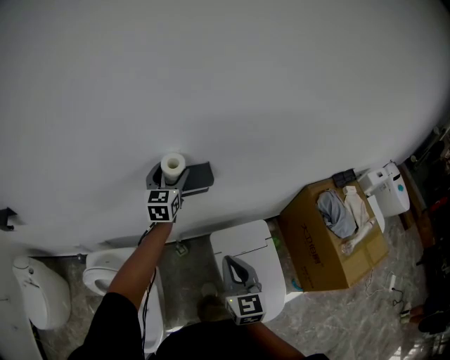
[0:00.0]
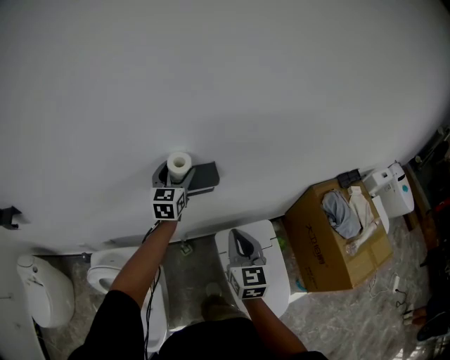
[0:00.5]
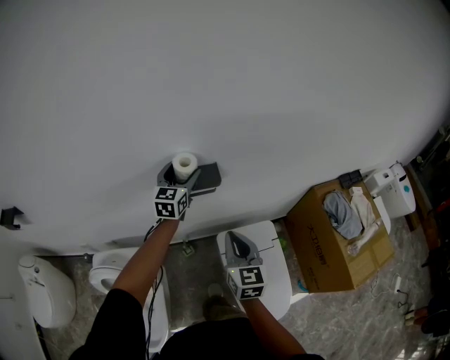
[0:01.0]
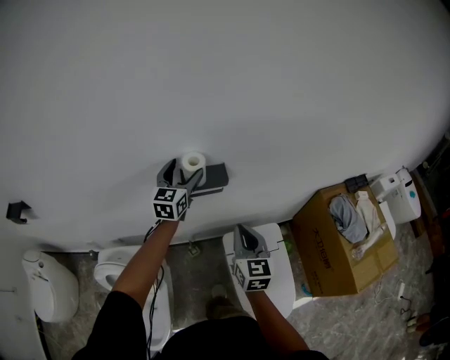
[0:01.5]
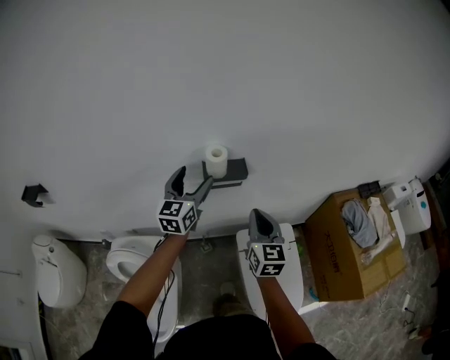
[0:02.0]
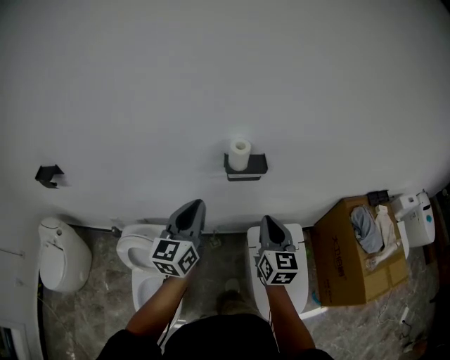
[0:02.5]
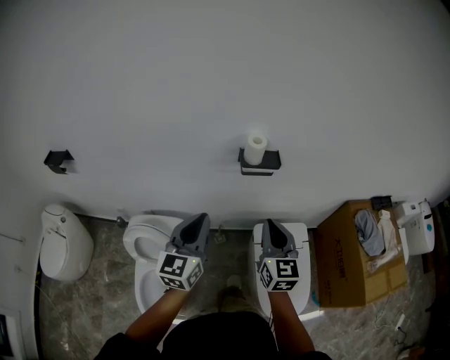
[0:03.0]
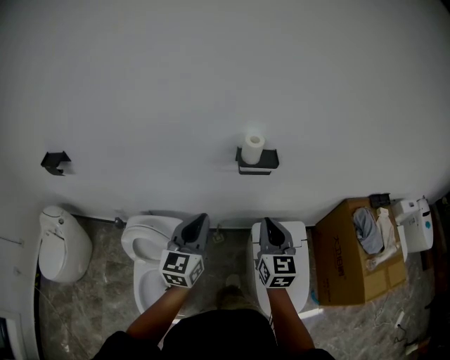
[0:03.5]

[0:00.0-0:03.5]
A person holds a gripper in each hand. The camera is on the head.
0:00.0 to 0:02.0: The right gripper travels forward by approximately 10 cm. The left gripper goes about 15 cm backward and upward.
0:02.0 to 0:03.5: The left gripper heads backward, covering roughly 25 cm, and closes its fingers, while the right gripper shifts some 15 cm backward and to the left.

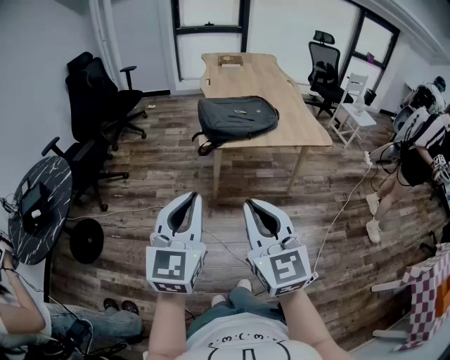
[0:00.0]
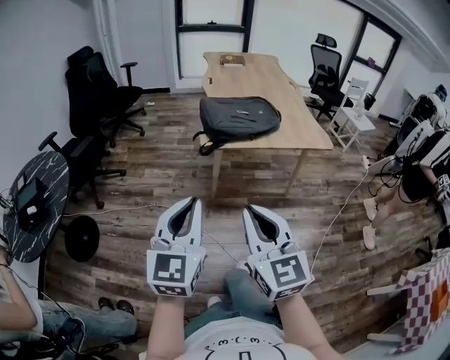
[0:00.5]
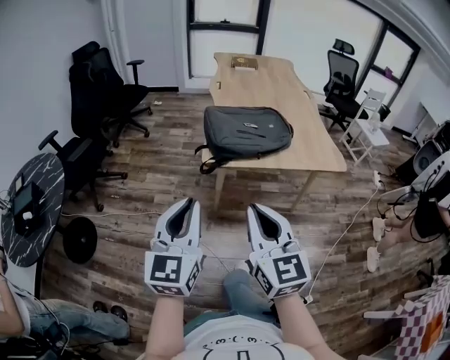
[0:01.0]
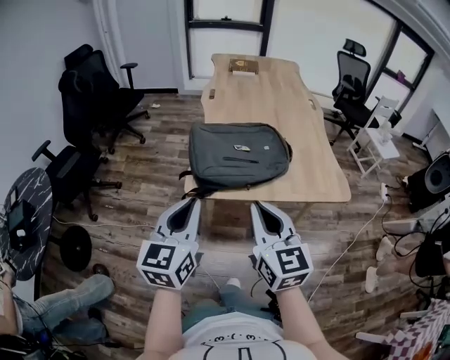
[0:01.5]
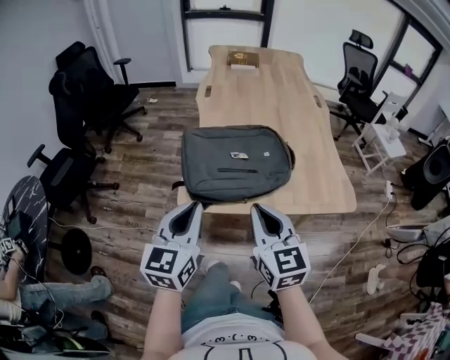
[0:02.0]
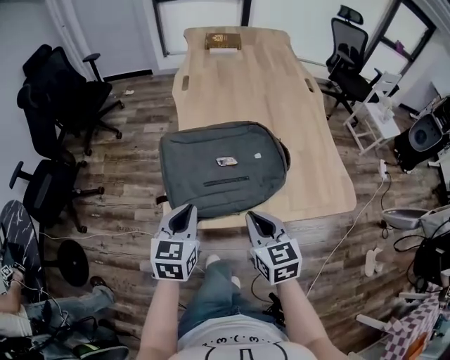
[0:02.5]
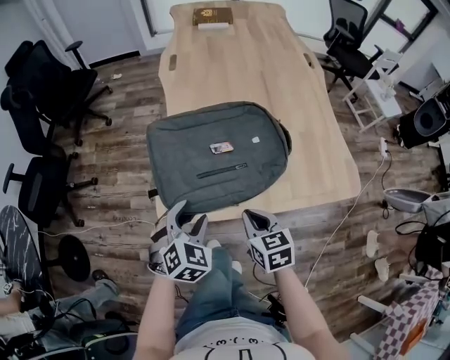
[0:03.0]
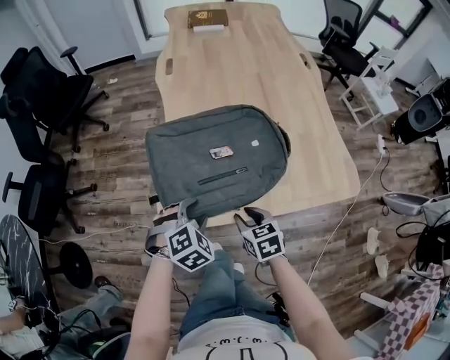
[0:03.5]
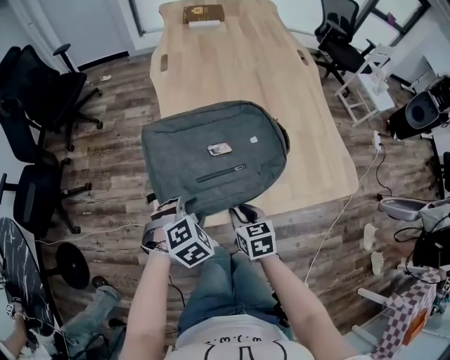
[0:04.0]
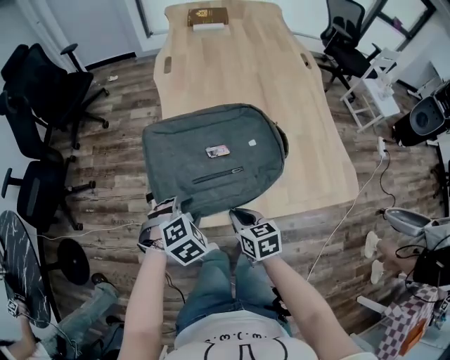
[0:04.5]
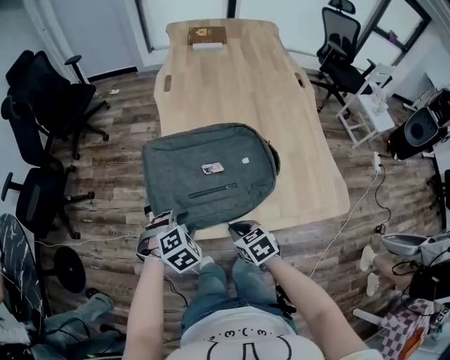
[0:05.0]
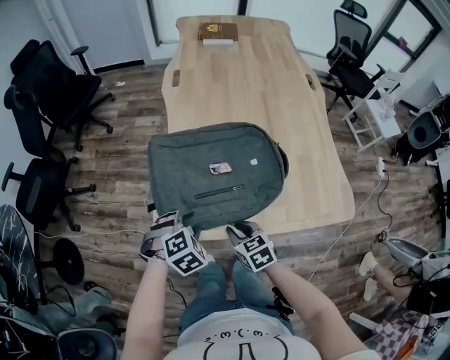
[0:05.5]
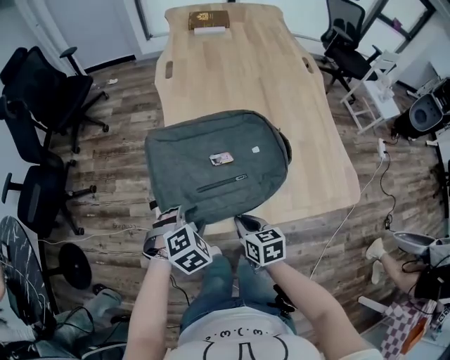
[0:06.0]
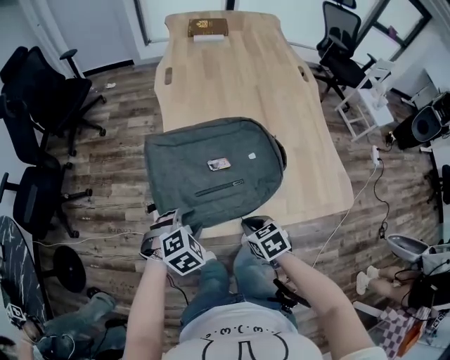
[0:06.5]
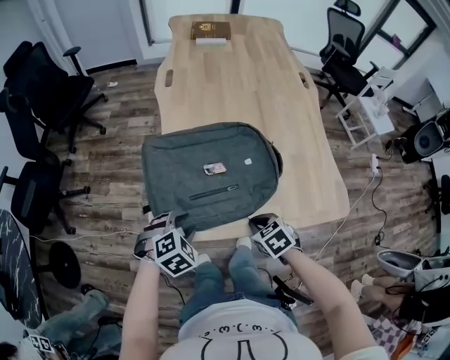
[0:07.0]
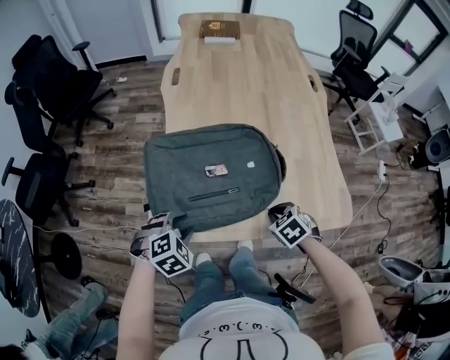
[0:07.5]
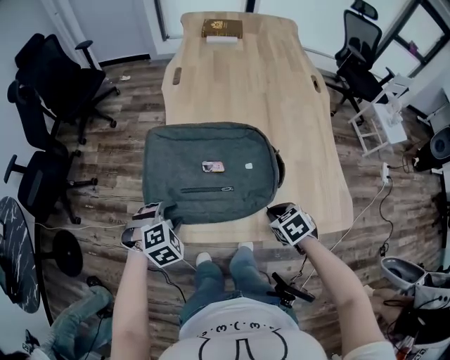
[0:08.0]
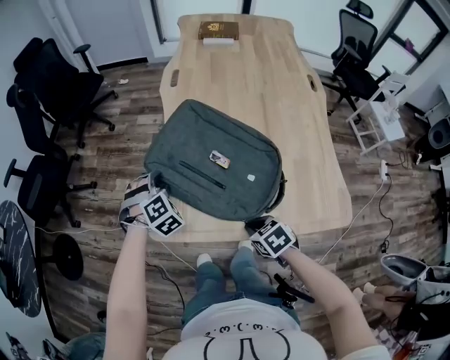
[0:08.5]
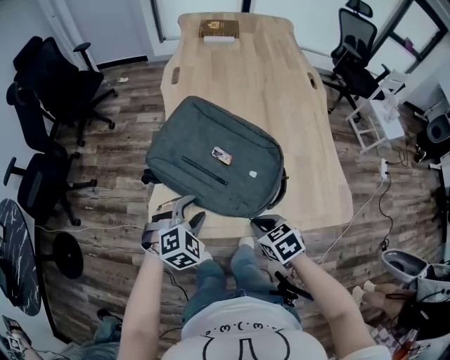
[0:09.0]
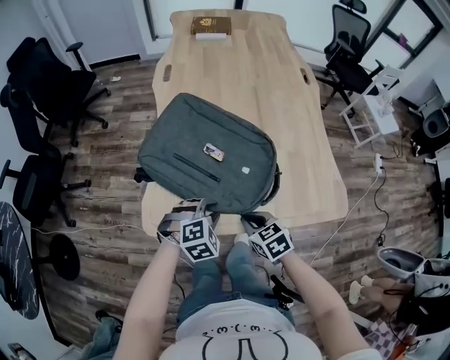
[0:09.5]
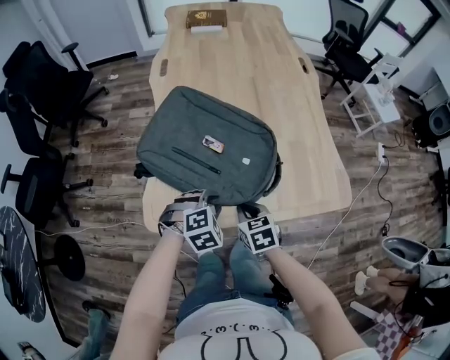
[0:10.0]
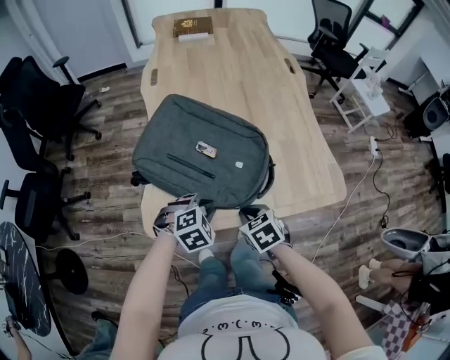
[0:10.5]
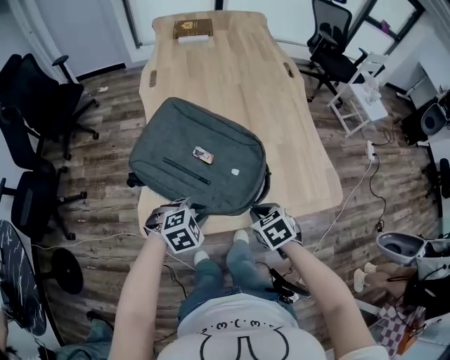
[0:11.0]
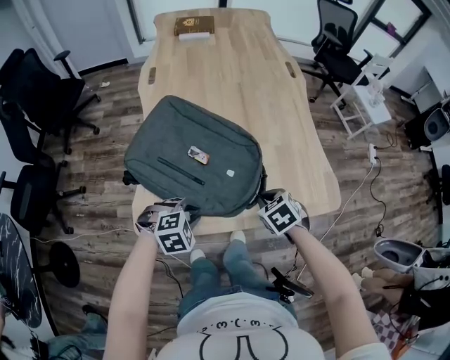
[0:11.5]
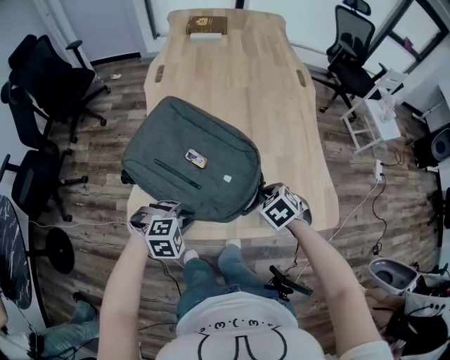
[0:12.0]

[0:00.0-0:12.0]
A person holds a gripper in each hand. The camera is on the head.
0:00.0 to 0:02.0: The grippers both shift forward by some 40 cm.
0:02.0 to 0:04.0: The left gripper travels downward and forward by some 25 cm, points its fingers roughly 50 degrees further downward, and opens, while the right gripper heads downward, covering roughly 25 cm, and angles its fingers downward, by some 30 degrees.
0:06.0 to 0:08.0: The right gripper travels to the right by roughly 15 cm, and swivels about 40 degrees.
0:08.0 to 0:10.0: The left gripper shifts by some 15 cm. Meanwhile the right gripper ends up approximately 10 cm from where it was, and changes its angle by roughly 20 degrees.
0:10.0 to 0:12.0: The right gripper heads forward and to the right, covering roughly 15 cm, and turns by about 30 degrees.

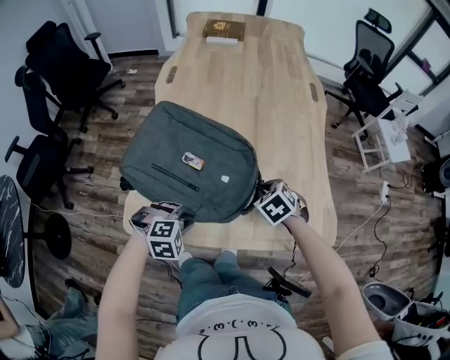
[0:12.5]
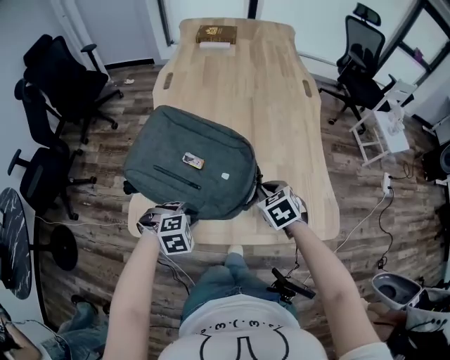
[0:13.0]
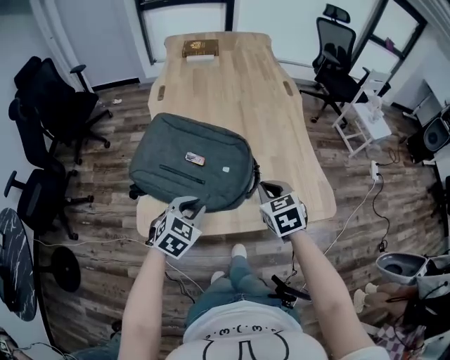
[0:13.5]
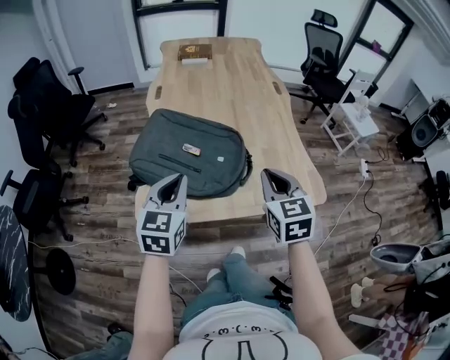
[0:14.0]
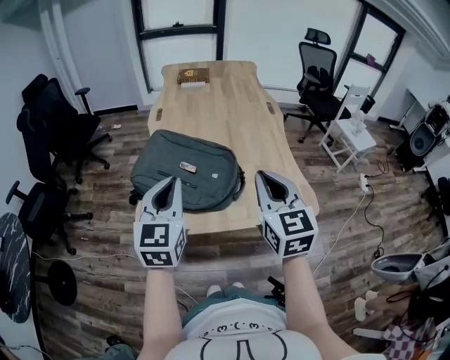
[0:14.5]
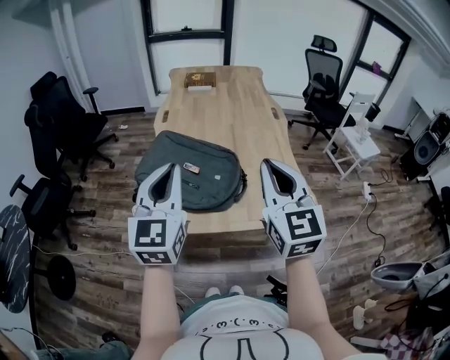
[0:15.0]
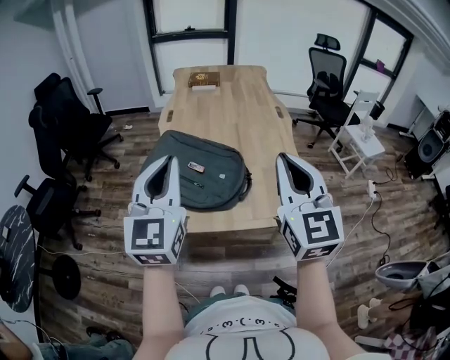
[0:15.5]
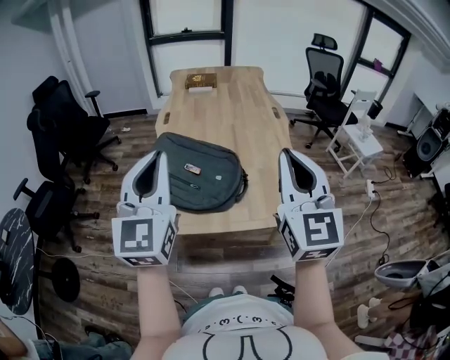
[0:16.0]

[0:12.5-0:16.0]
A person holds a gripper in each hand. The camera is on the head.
0:12.5 to 0:14.5: The right gripper shifts about 35 cm upward and backward, and tilts its fingers about 60 degrees upward, while the left gripper heads upward, covering approximately 30 cm, and points its fingers about 60 degrees further upward.
0:14.5 to 0:16.0: Both grippers travel together upward, some 10 cm.

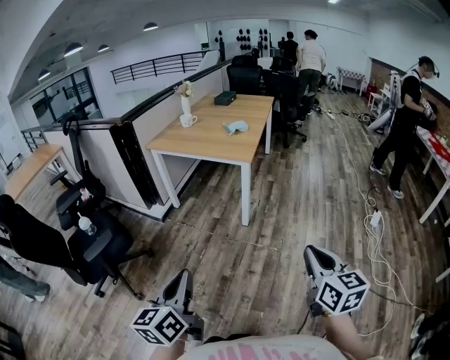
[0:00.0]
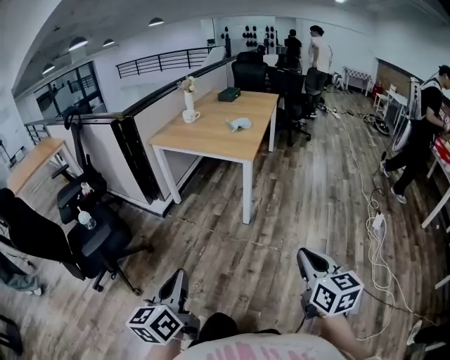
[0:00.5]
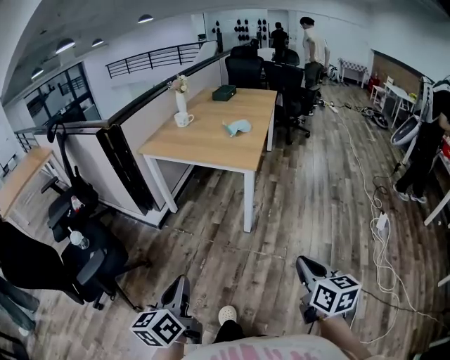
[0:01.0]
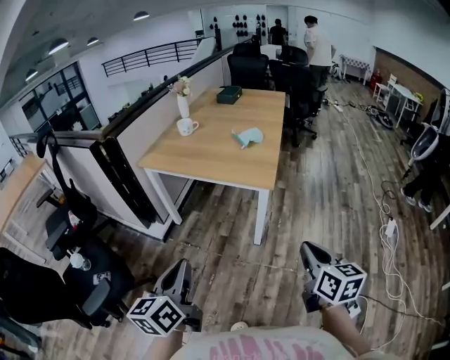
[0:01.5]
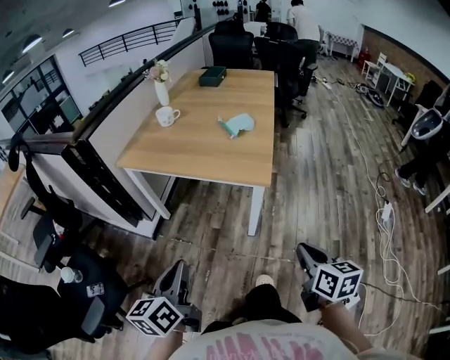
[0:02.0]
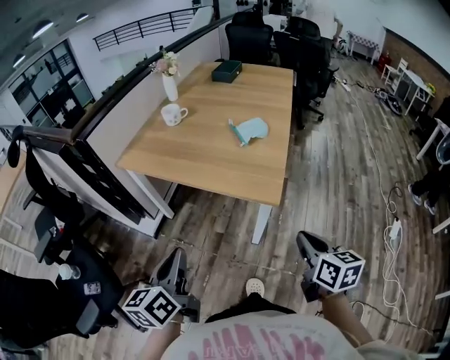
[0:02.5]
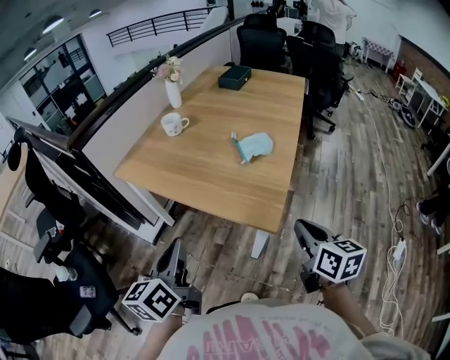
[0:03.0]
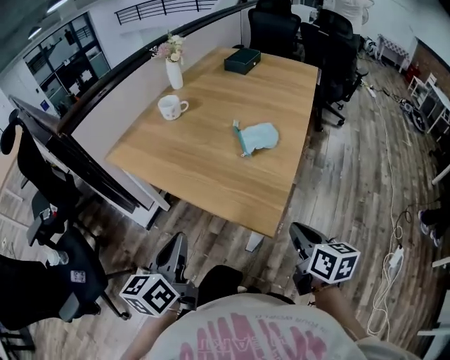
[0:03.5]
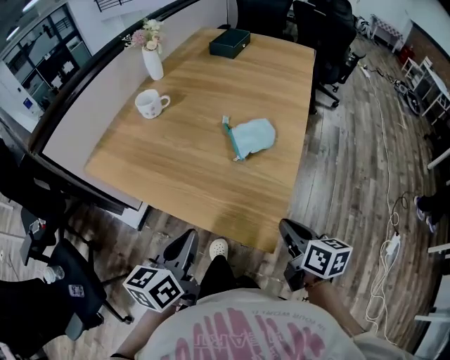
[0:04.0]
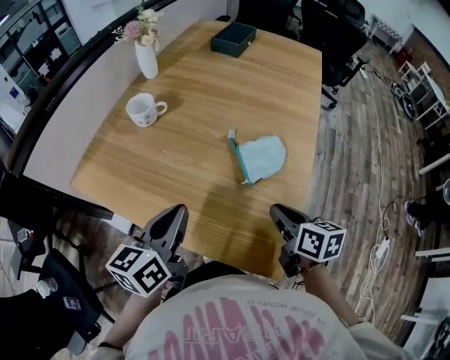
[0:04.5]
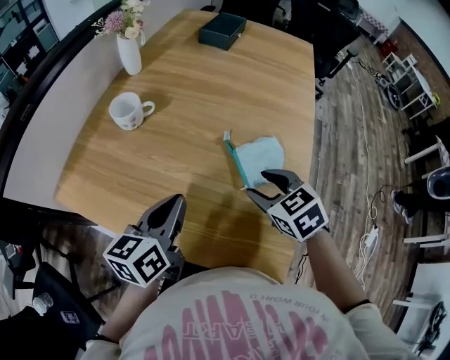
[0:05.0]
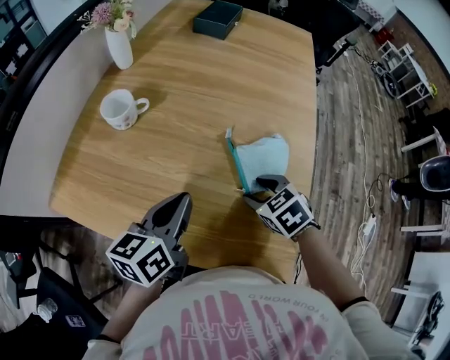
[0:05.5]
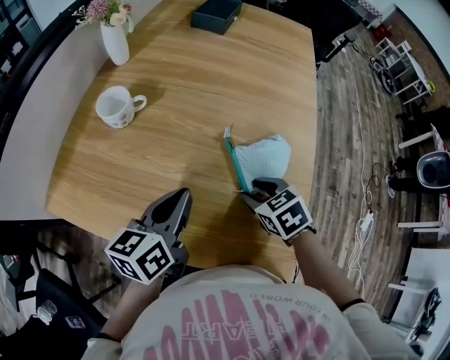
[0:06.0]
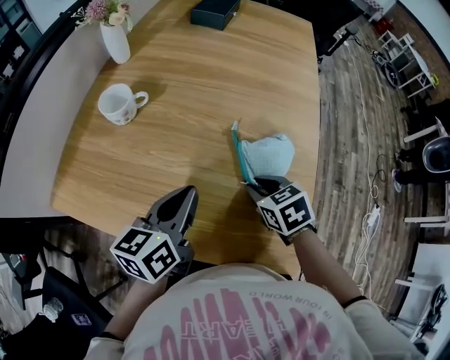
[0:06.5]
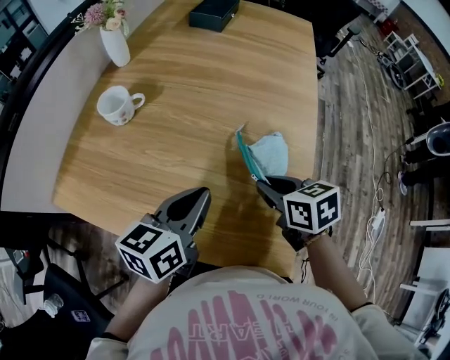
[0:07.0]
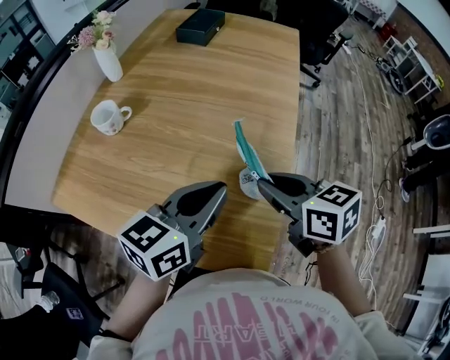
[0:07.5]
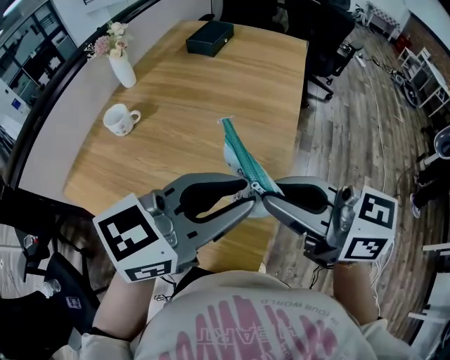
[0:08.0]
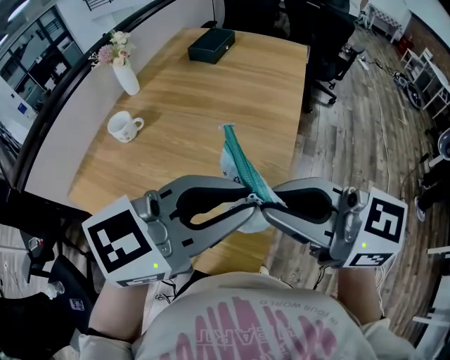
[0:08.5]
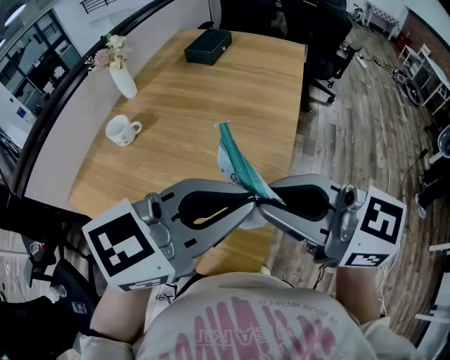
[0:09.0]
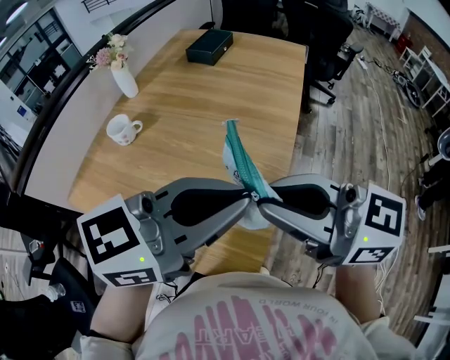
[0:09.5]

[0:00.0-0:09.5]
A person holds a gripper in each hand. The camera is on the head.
0:00.0 to 0:02.0: The two grippers go approximately 40 cm forward.
0:02.0 to 0:04.0: The left gripper goes roughly 35 cm forward and to the right. Meanwhile the right gripper shifts about 35 cm forward.
0:04.0 to 0:05.5: The right gripper shifts about 25 cm forward and to the left, twists approximately 40 degrees counterclockwise, seen from behind, and opens its fingers, while the left gripper goes roughly 25 cm forward.
0:05.5 to 0:07.5: The left gripper heads to the right and upward, covering some 20 cm, and rotates approximately 20 degrees. Meanwhile the right gripper goes some 15 cm upward and to the right, rotates some 40 degrees, and closes.
0:07.5 to 0:09.5: Both grippers travel together upward, some 15 cm. The right gripper rotates roughly 40 degrees. Meanwhile the left gripper changes its angle by some 20 degrees, and opens, then closes once more.
